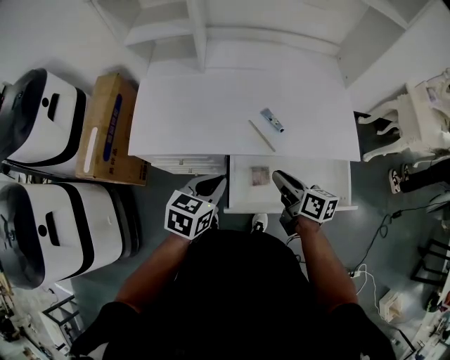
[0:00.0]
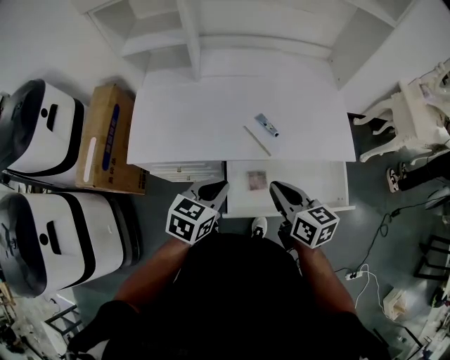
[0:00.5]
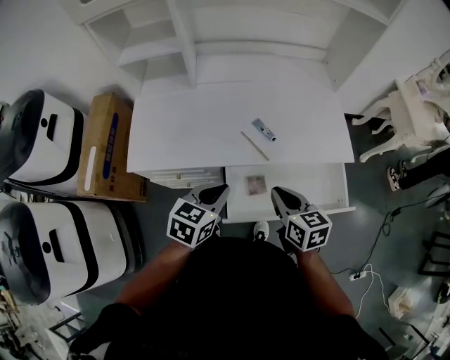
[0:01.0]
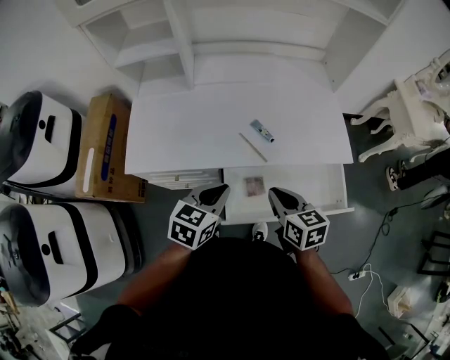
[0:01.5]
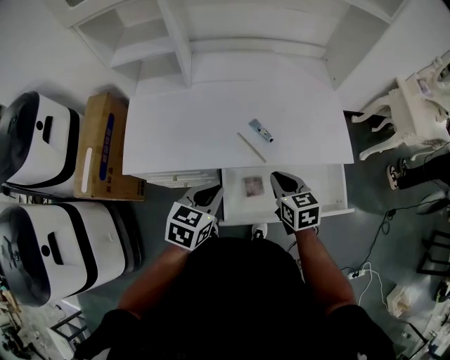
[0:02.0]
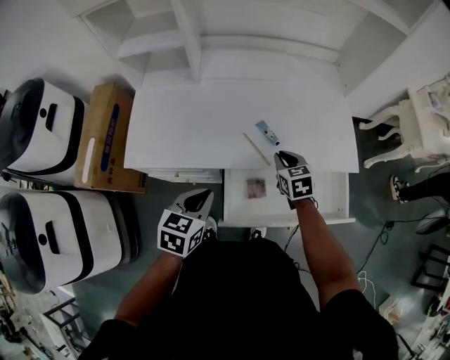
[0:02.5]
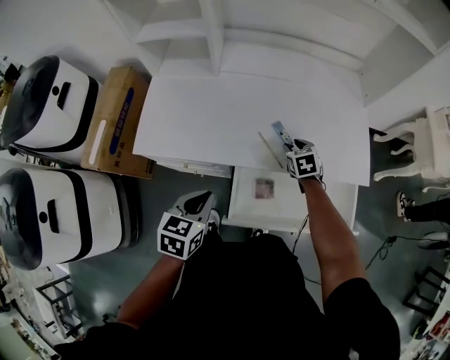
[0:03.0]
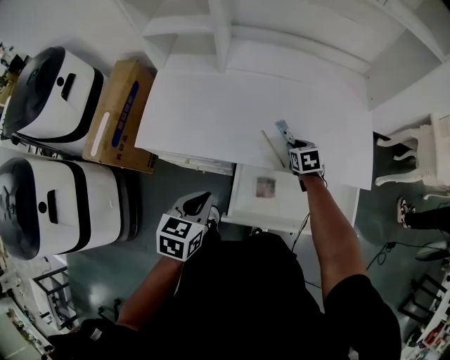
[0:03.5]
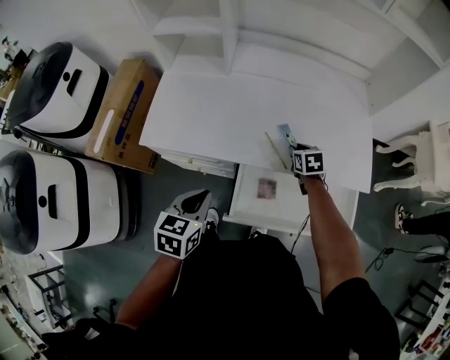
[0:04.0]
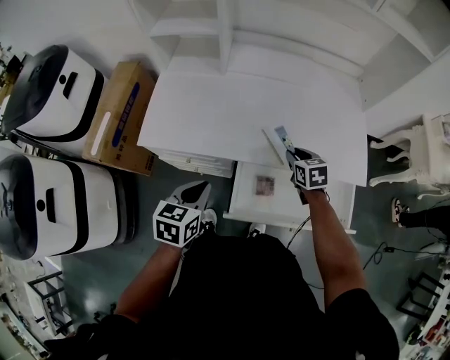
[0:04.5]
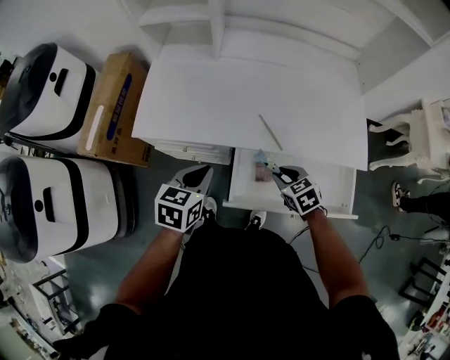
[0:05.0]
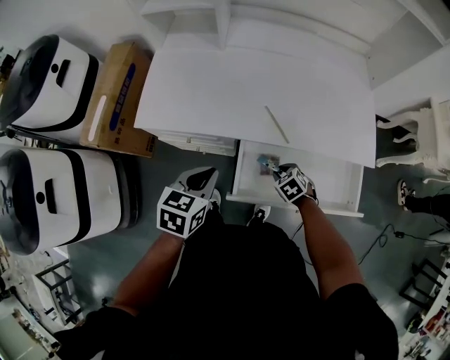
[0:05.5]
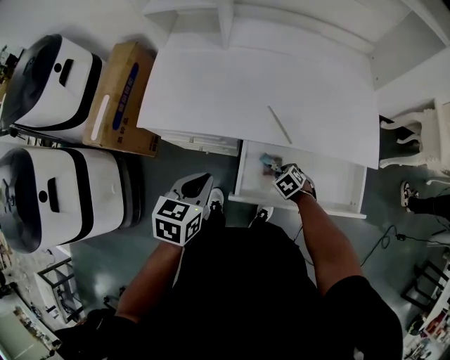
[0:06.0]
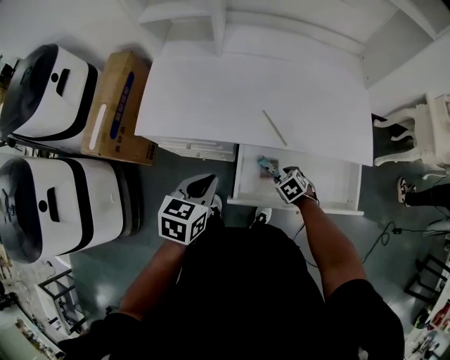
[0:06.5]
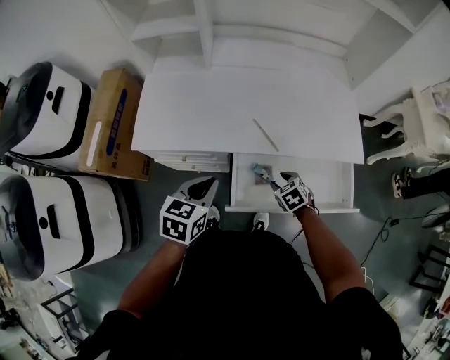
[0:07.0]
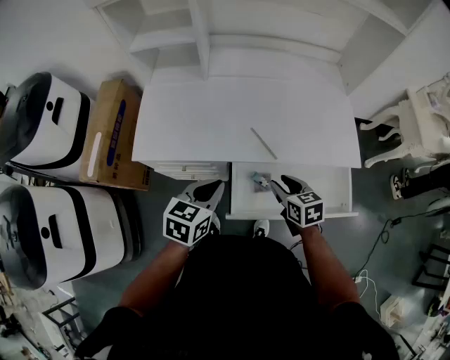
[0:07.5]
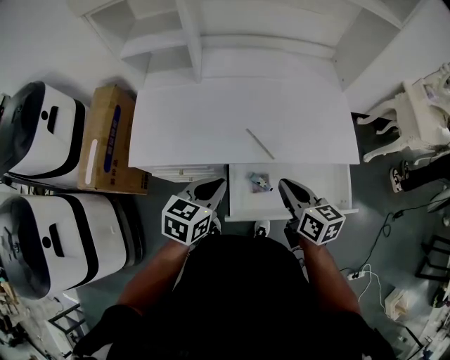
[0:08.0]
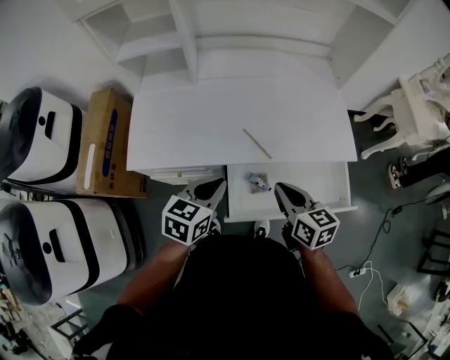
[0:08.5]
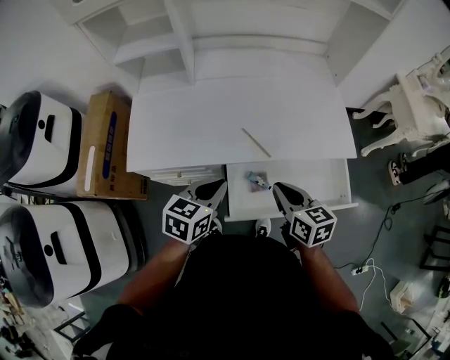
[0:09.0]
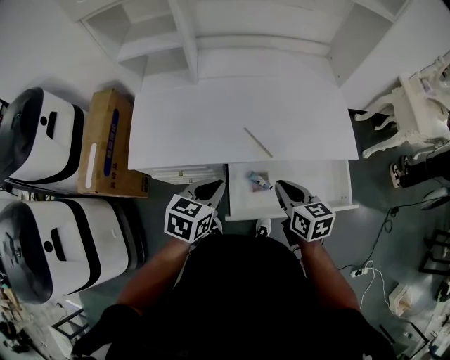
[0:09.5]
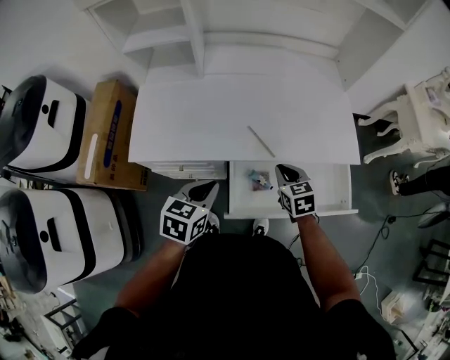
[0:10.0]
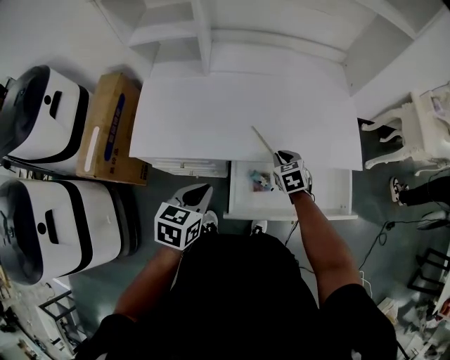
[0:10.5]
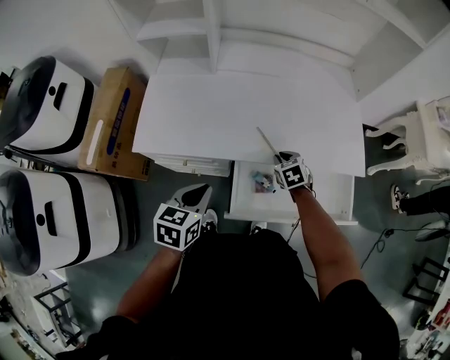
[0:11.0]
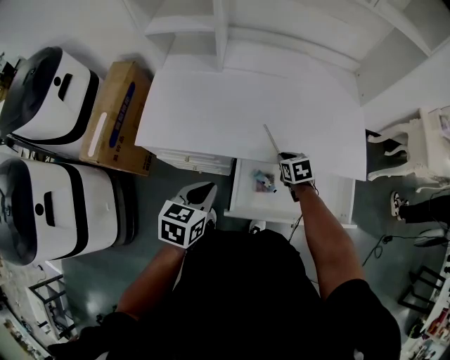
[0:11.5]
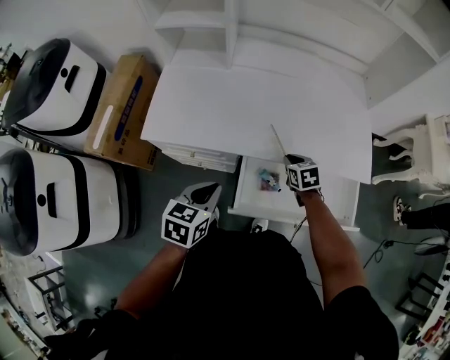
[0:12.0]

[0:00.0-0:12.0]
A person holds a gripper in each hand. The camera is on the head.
0:00.0 to 0:02.0: The right gripper changes its angle by some 40 degrees.
0:02.0 to 0:04.0: The right gripper heads forward and downward, covering approximately 20 cm, while the left gripper is displaced to the left by roughly 5 cm, and changes its angle by roughly 20 degrees.
0:04.0 to 0:06.0: The right gripper changes place by roughly 25 cm, and turns by roughly 40 degrees.
0:06.0 to 0:08.0: The right gripper heads upward, covering roughly 30 cm, and angles its fingers upward, by some 50 degrees; the left gripper shifts by some 10 cm.
0:08.0 to 0:10.0: The right gripper shifts roughly 10 cm downward and forward, and swivels about 30 degrees.
0:10.0 to 0:12.0: The right gripper travels downward and forward by some 10 cm.

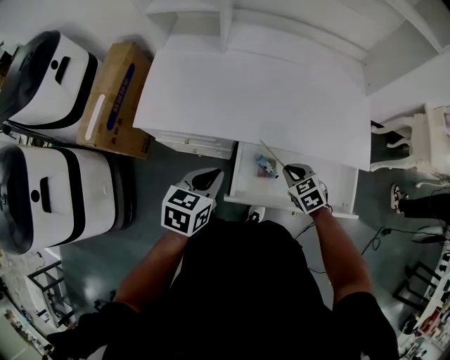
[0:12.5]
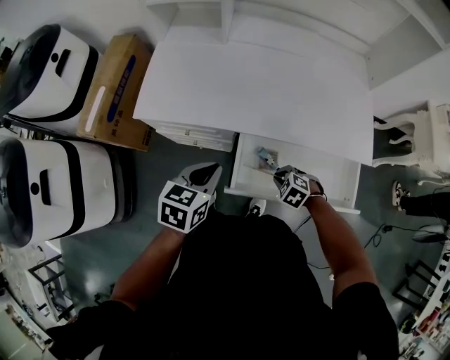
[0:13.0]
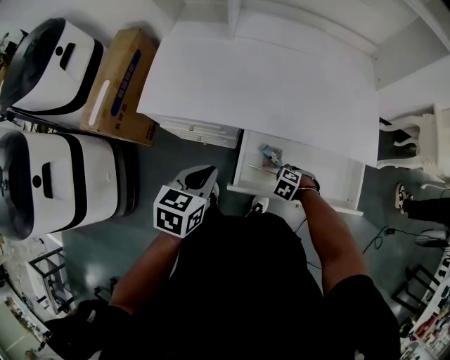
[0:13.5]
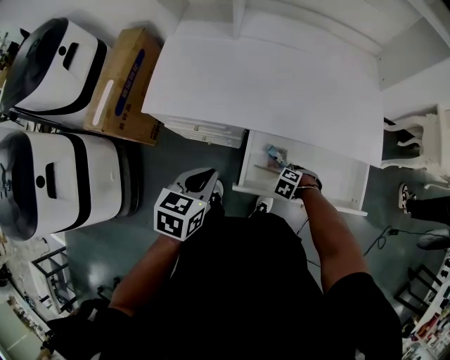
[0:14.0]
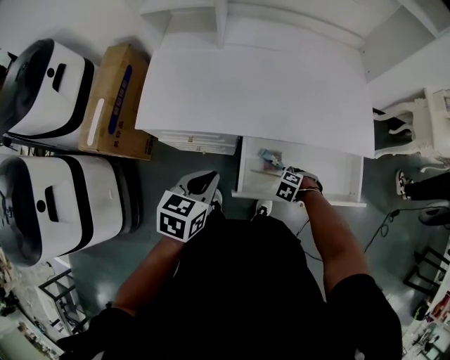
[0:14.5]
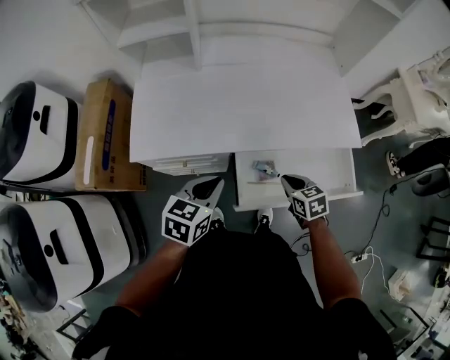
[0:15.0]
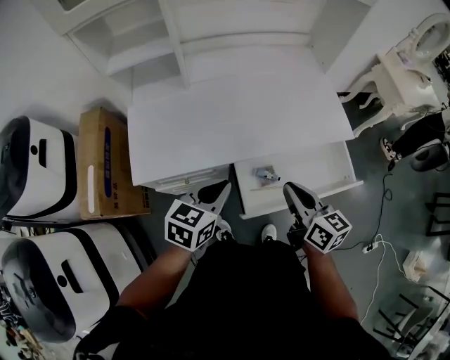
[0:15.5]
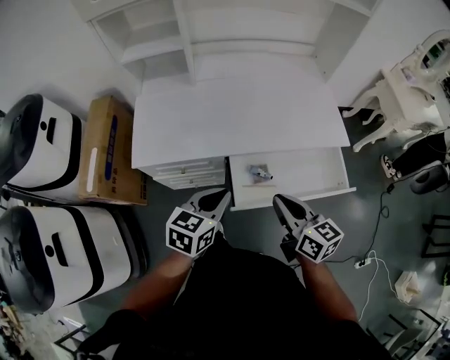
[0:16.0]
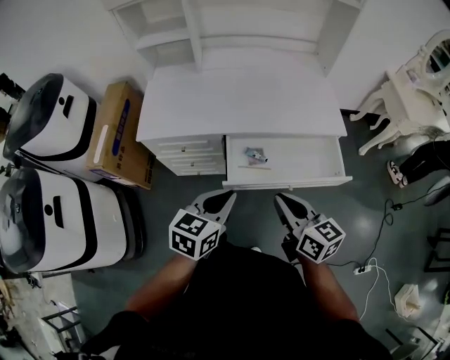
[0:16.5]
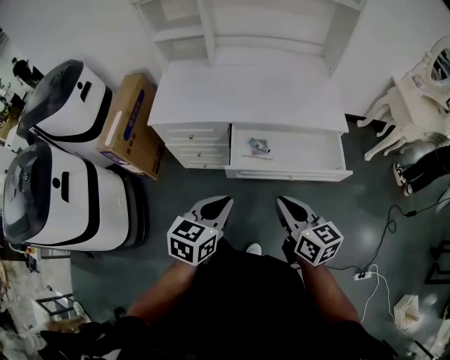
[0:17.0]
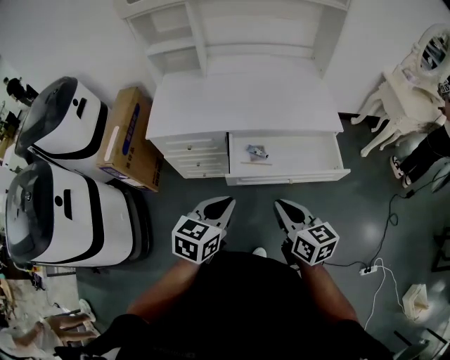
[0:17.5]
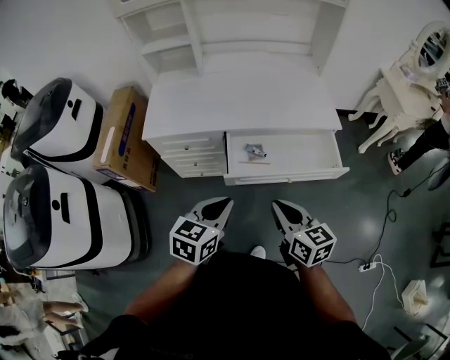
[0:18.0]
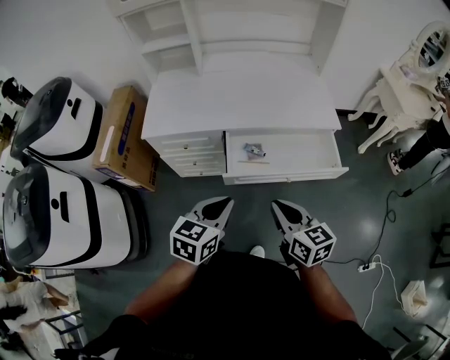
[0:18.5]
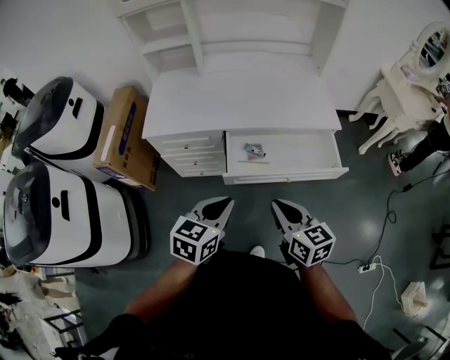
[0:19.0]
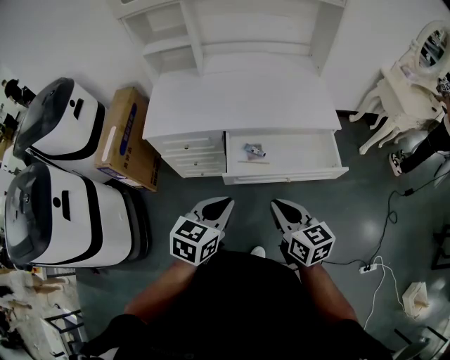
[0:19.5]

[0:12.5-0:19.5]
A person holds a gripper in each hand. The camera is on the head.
0:12.5 to 0:14.5: The right gripper is displaced downward by about 15 cm, and points its fingers about 30 degrees further downward.
0:14.5 to 0:16.0: The right gripper travels upward by roughly 35 cm, and tips its fingers upward by some 70 degrees. Meanwhile the left gripper heads upward, covering approximately 5 cm.
0:16.0 to 0:17.5: The grippers both shift backward by some 15 cm.
0:17.5 to 0:19.5: Both grippers stay about where they are.

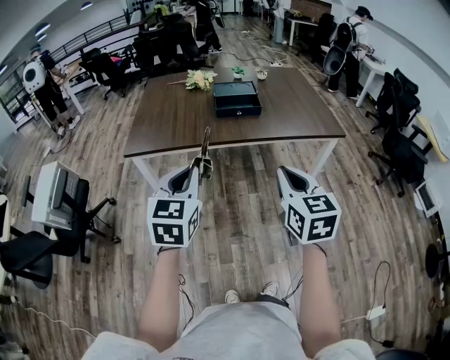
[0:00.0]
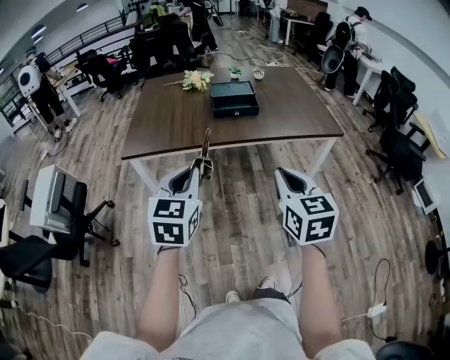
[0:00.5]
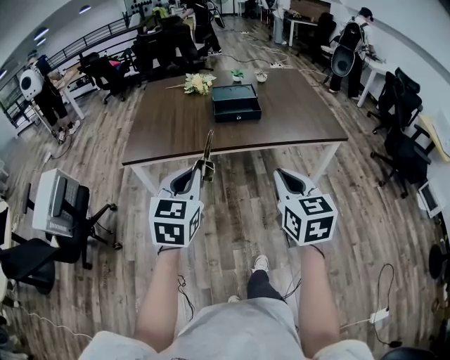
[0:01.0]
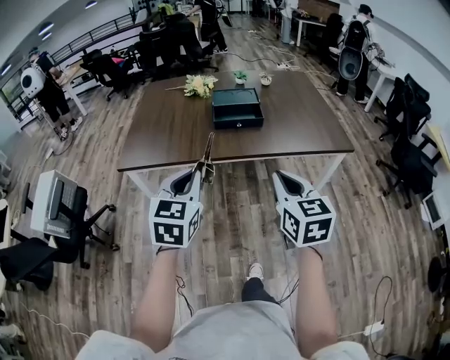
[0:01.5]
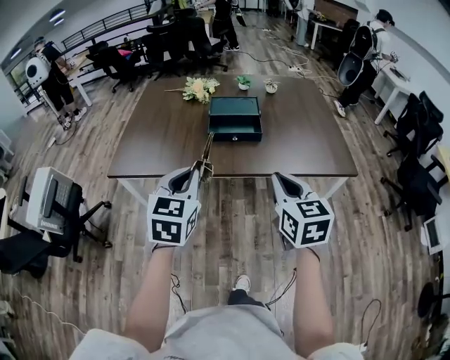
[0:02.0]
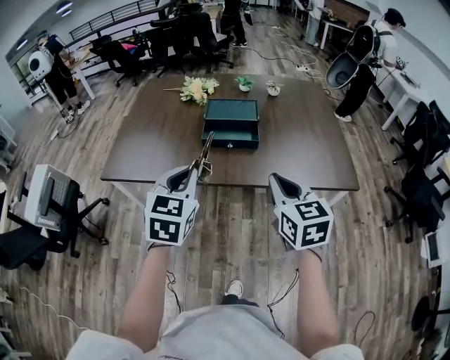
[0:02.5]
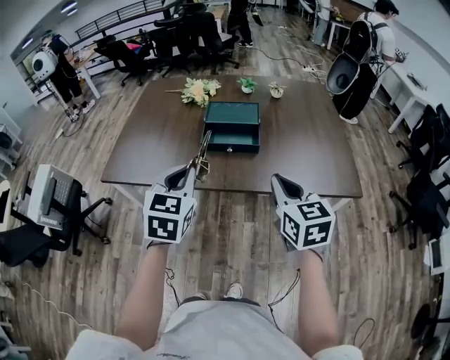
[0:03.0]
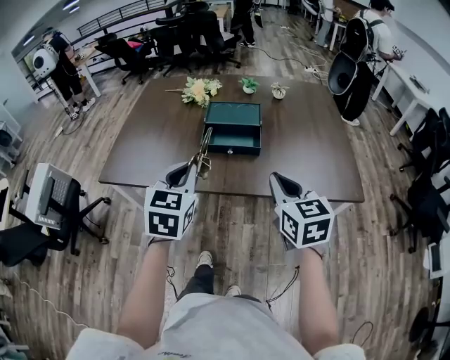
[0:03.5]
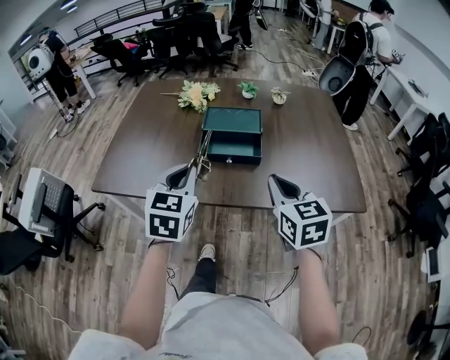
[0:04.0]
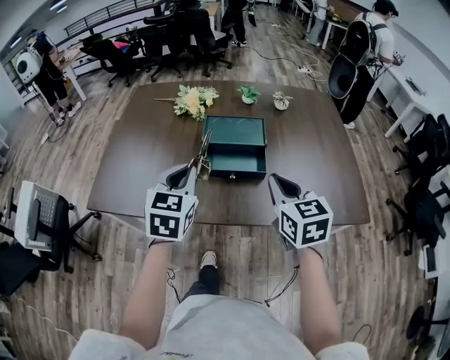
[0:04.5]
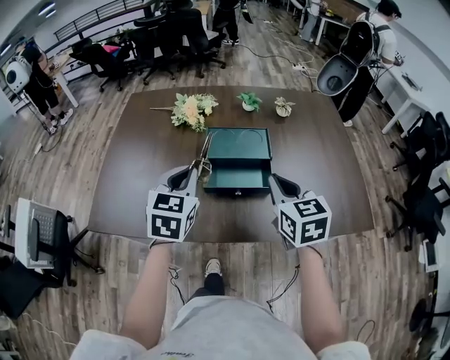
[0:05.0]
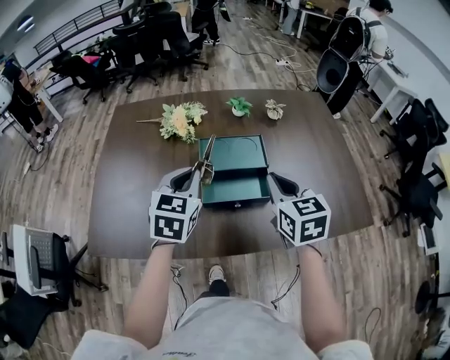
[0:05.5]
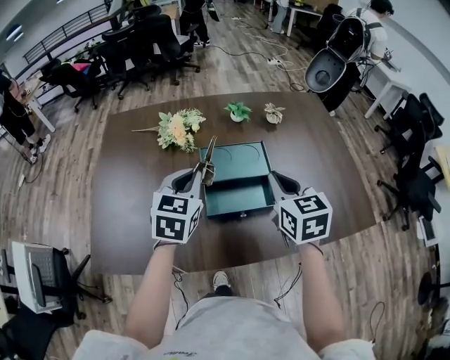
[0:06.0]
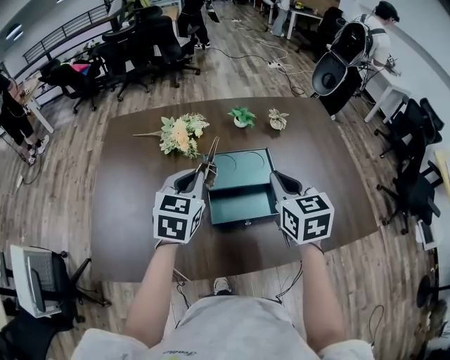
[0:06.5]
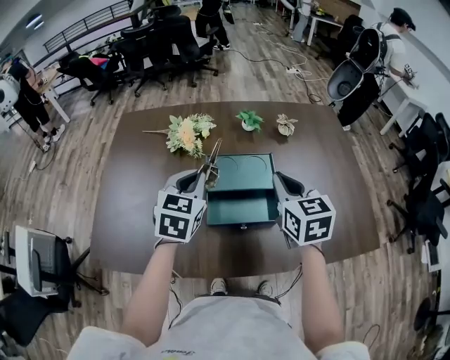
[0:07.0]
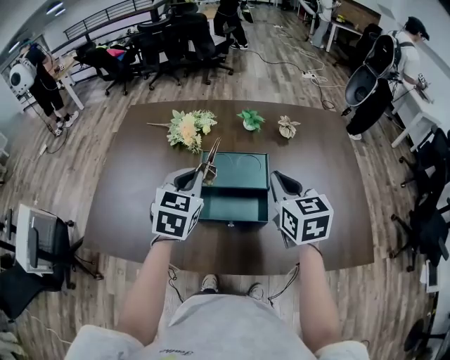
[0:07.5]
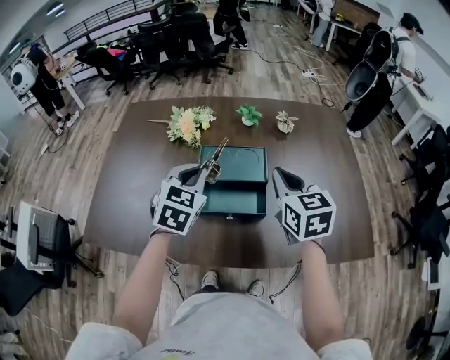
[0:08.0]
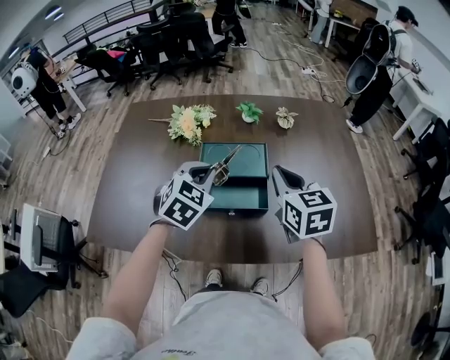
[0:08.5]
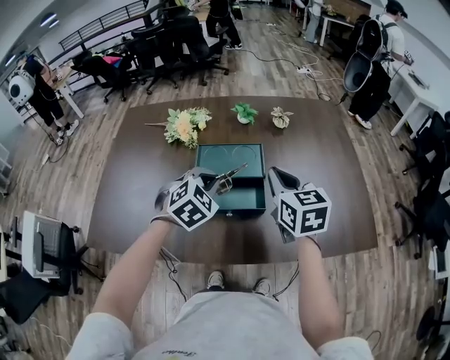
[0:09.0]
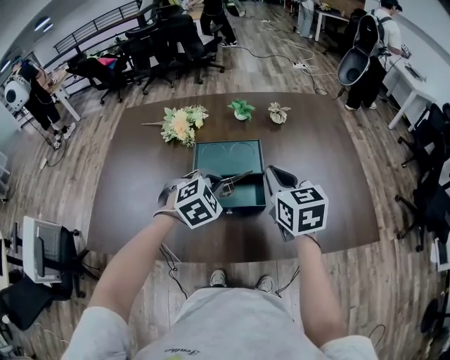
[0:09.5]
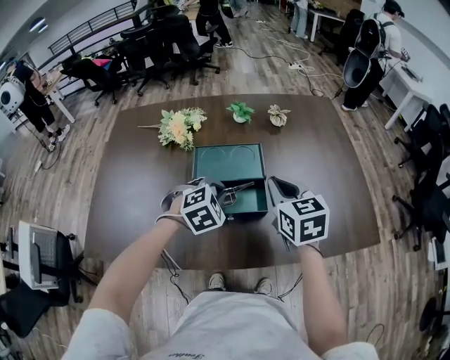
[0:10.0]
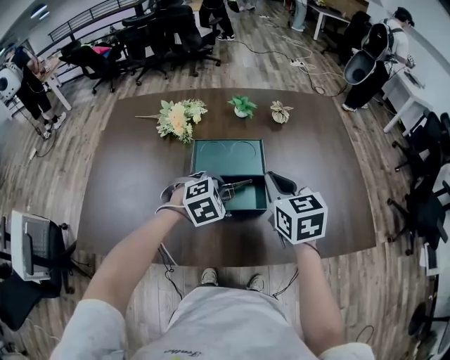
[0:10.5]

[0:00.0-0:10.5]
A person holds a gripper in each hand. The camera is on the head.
0:00.0 to 0:02.0: The right gripper is displaced forward by roughly 20 cm; the left gripper travels forward and to the right by approximately 20 cm.
0:02.0 to 0:04.0: The two grippers go about 15 cm forward.
0:04.0 to 0:06.5: The two grippers go approximately 25 cm forward.
0:06.5 to 0:08.5: The grippers both shift to the right by roughly 5 cm. The left gripper rotates approximately 20 degrees.
0:08.5 to 0:10.5: The left gripper is displaced downward by roughly 10 cm, and changes its angle by some 30 degrees.
